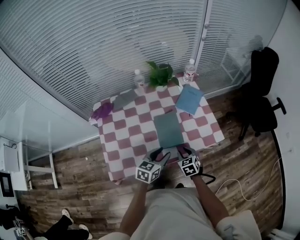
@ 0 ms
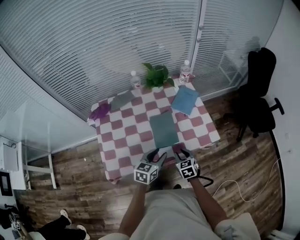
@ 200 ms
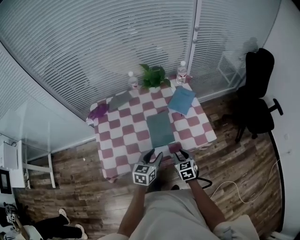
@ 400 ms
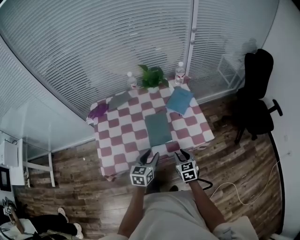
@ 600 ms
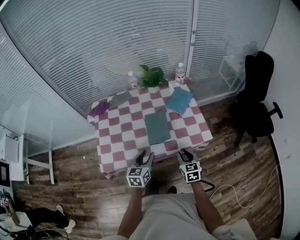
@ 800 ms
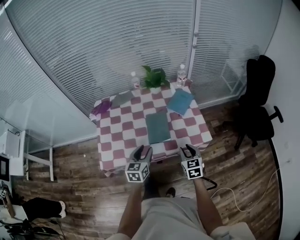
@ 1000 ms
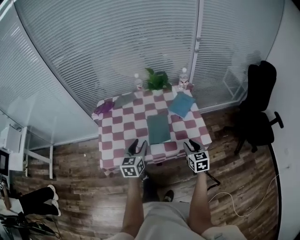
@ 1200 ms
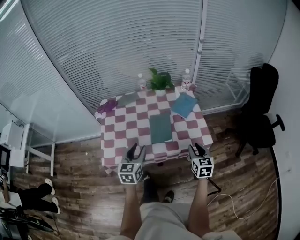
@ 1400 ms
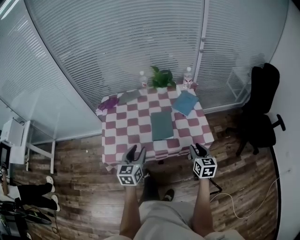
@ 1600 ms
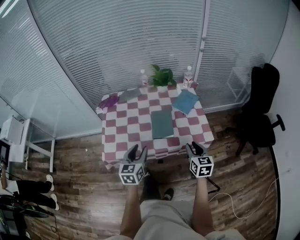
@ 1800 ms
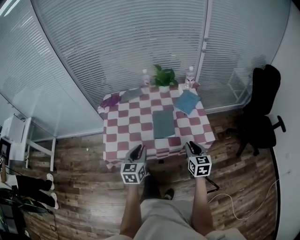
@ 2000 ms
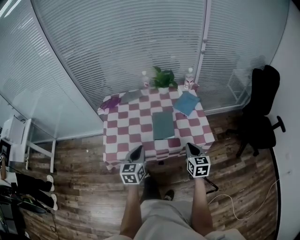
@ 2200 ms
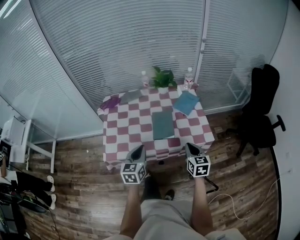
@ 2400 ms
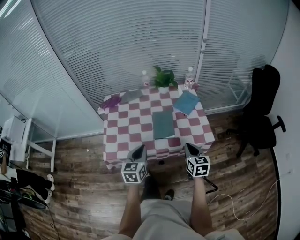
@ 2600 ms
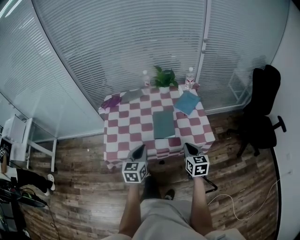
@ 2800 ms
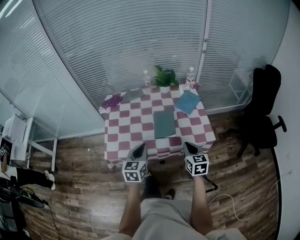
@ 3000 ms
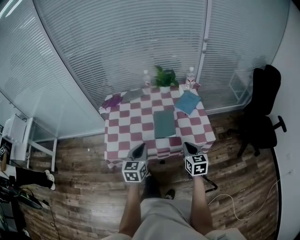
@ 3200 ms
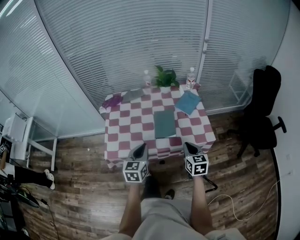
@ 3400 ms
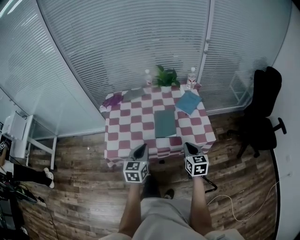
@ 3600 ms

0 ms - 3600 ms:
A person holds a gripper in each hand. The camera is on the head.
0 ms - 1800 ms: The left gripper shifts roughly 15 cm backward, upward and to the left, and rotates some 40 degrees. Meanwhile the right gripper travels upward, to the right and backward by about 20 cm, and rotates about 30 degrees.
1800 ms - 3600 ms: The right gripper closes its fingers. Meanwhile the left gripper closes up.

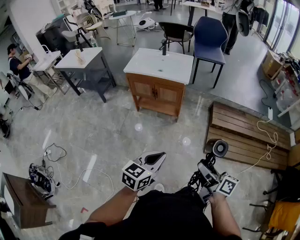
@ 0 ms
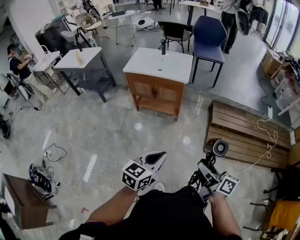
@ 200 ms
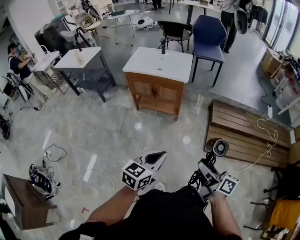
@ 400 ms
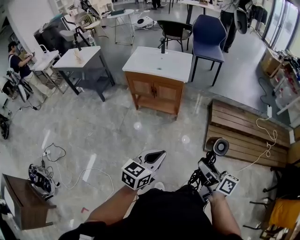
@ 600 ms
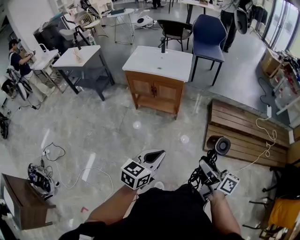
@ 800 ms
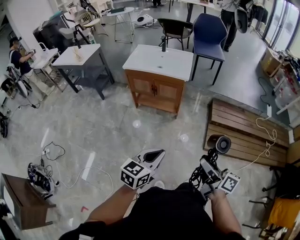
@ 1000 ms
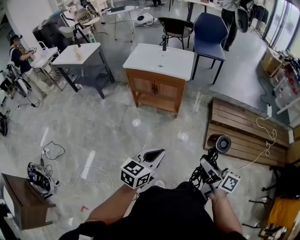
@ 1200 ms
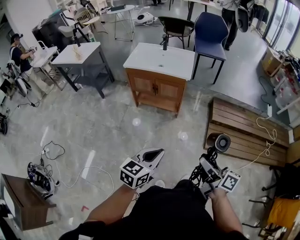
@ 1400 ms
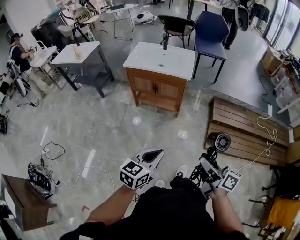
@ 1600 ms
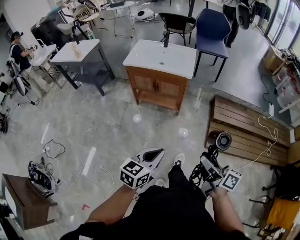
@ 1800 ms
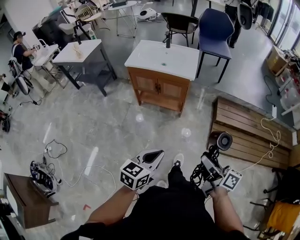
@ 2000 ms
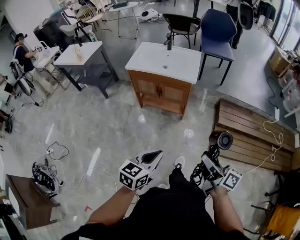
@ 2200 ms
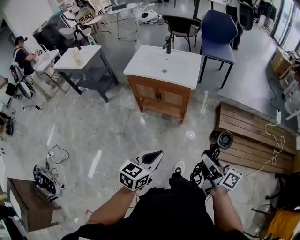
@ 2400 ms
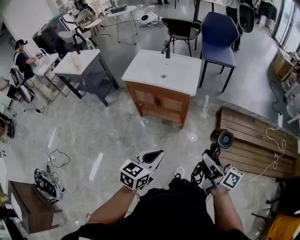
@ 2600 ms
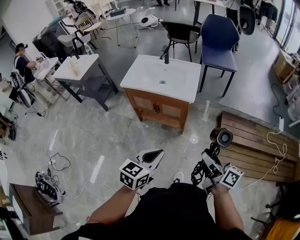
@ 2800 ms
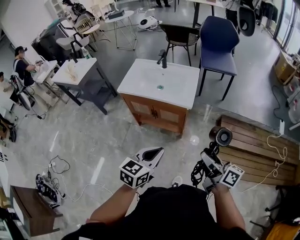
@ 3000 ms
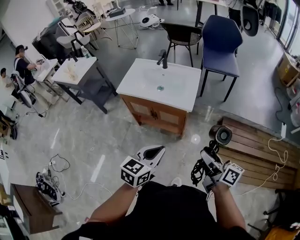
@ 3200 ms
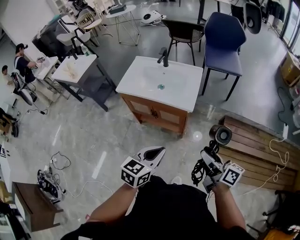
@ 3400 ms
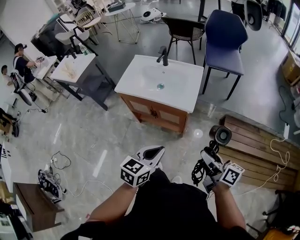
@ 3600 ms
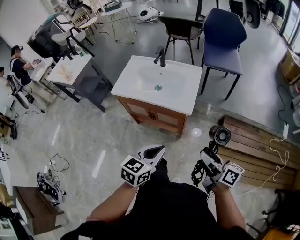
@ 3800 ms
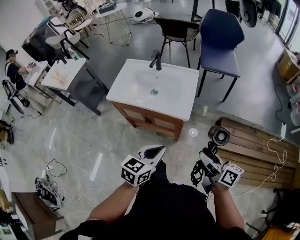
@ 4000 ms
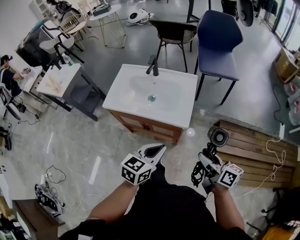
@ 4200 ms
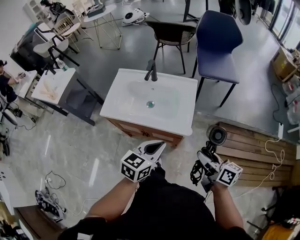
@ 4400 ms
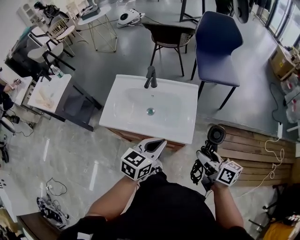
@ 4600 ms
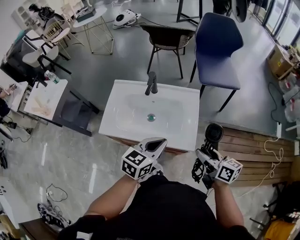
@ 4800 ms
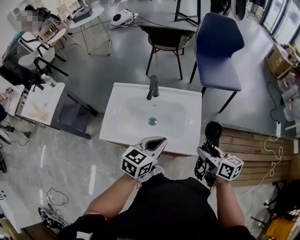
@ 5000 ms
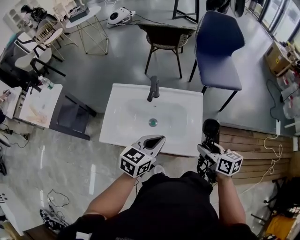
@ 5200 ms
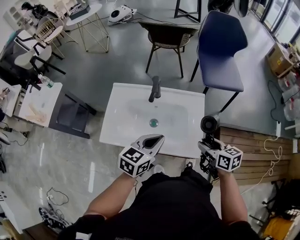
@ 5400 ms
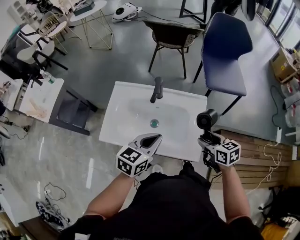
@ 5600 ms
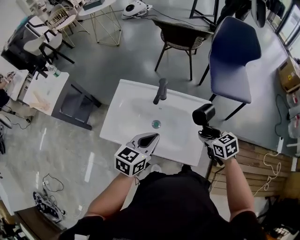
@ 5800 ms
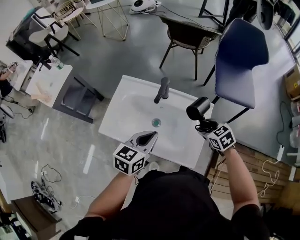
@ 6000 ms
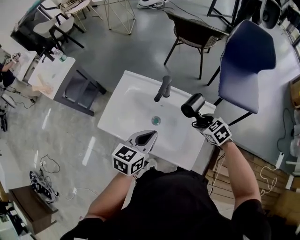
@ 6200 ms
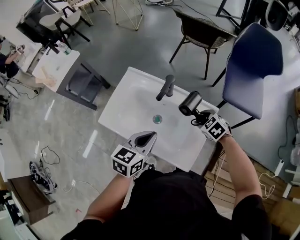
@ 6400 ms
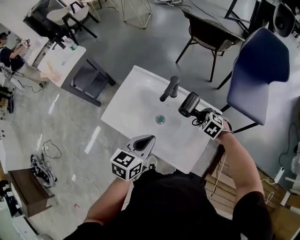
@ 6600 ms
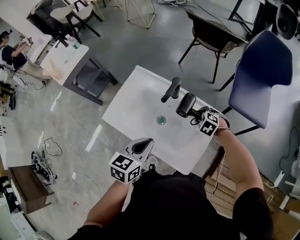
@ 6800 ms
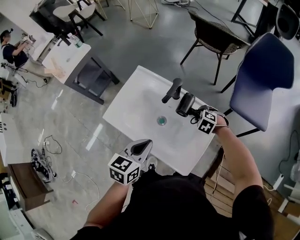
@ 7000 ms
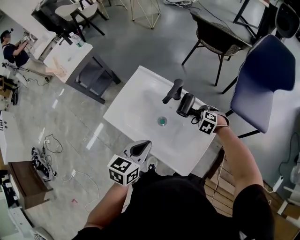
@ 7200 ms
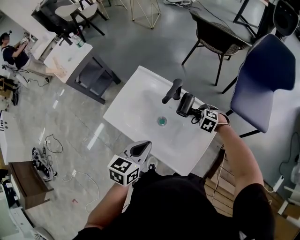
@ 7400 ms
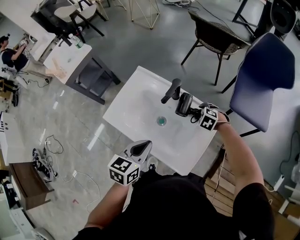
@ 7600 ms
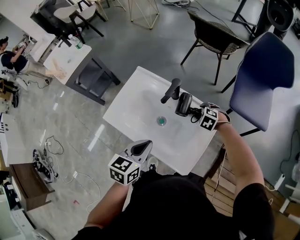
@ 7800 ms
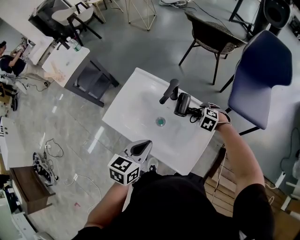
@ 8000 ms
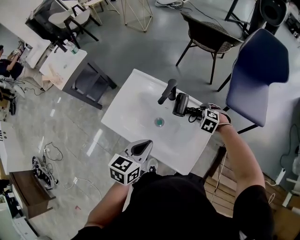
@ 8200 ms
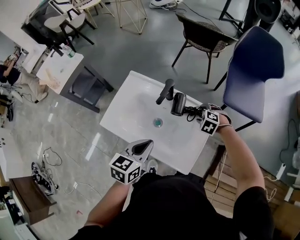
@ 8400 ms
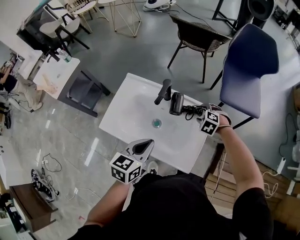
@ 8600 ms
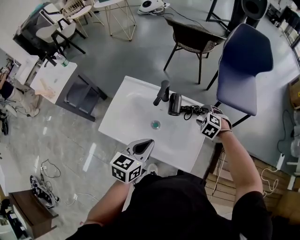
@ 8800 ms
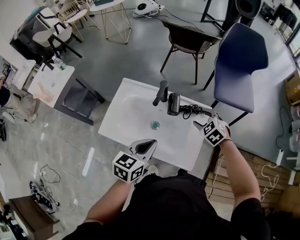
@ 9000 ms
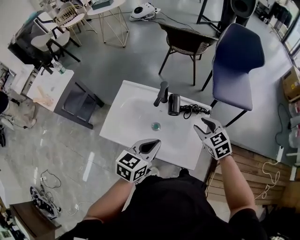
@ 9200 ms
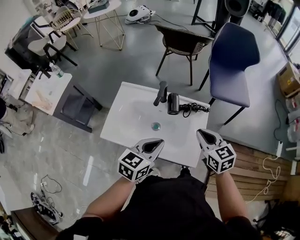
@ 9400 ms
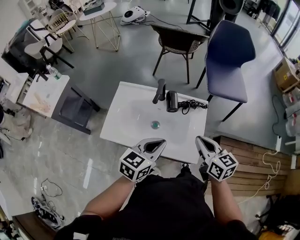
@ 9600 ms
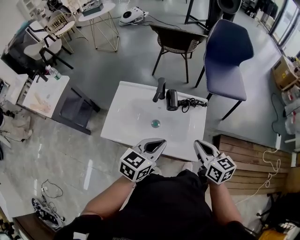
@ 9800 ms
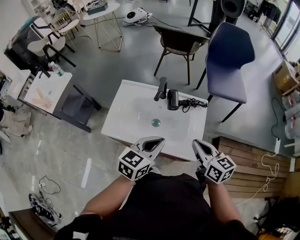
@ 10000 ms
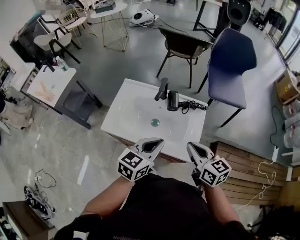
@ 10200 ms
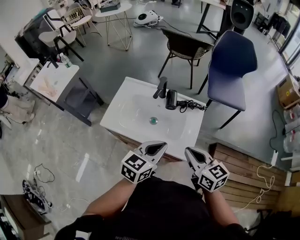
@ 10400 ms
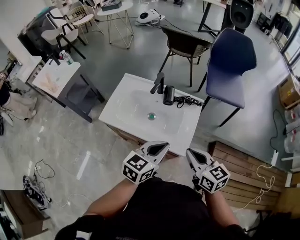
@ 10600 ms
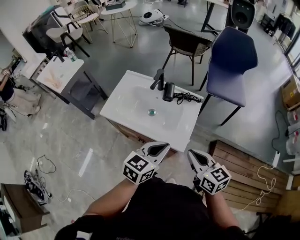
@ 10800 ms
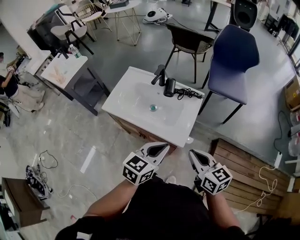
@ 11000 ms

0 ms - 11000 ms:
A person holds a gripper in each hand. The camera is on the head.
0 ms - 1600 ms: The grippers move only a little.
1600 ms - 3200 ms: The grippers both shift forward by about 30 cm.
3200 ms - 4800 ms: Both grippers travel together forward, about 30 cm.
4800 ms - 6200 ms: The left gripper heads forward and to the left, covering roughly 15 cm, and rotates approximately 20 degrees. The right gripper moves forward and downward, some 30 cm, and points its fingers some 40 degrees further downward.
6200 ms - 7800 ms: The right gripper shifts roughly 15 cm downward and forward, and swivels approximately 40 degrees.
7800 ms - 9400 ms: The right gripper heads upward and backward, covering some 30 cm, angles its fingers upward, by about 50 degrees, and closes. Meanwhile the left gripper changes its angle by some 30 degrees.
9400 ms - 11000 ms: The right gripper moves backward, about 20 cm. Meanwhile the left gripper travels backward and to the right by roughly 20 cm.

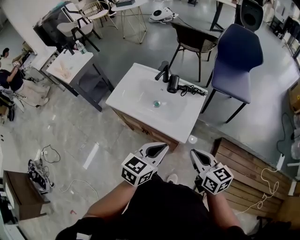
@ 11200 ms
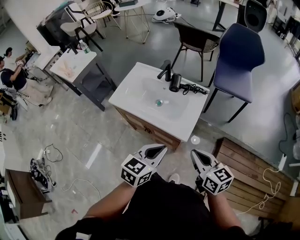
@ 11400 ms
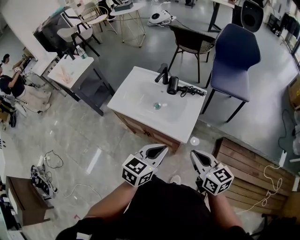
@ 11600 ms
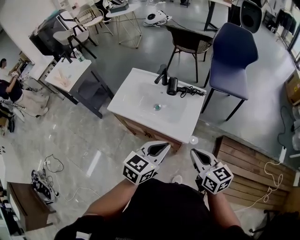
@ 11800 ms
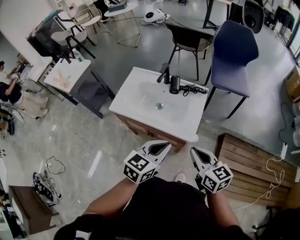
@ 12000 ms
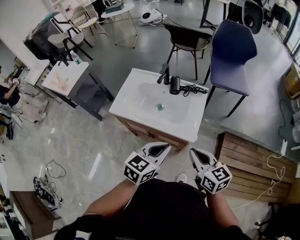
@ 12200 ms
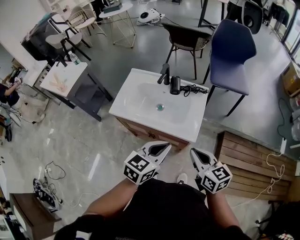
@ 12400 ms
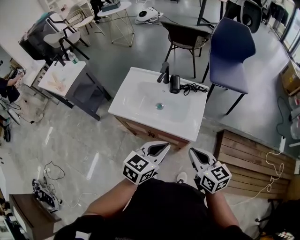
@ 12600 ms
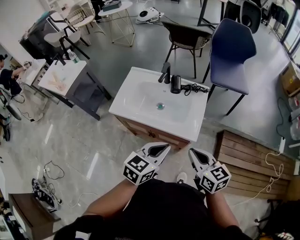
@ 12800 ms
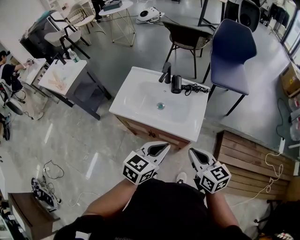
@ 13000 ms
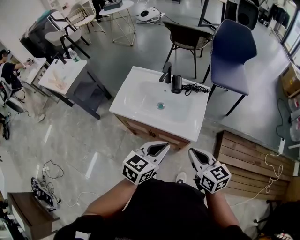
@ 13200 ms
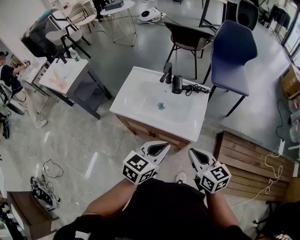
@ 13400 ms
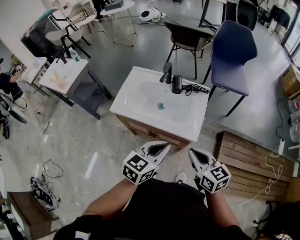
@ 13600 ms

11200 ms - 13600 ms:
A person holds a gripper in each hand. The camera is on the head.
11200 ms - 12400 ms: Both grippers move to the left, about 5 cm.
12400 ms - 13600 ms: The grippers move only a little.

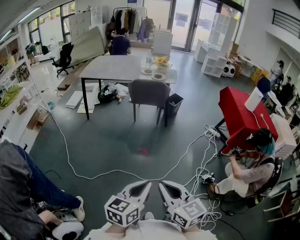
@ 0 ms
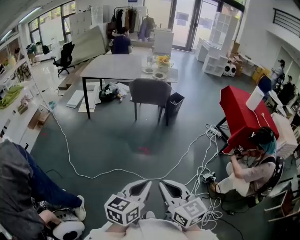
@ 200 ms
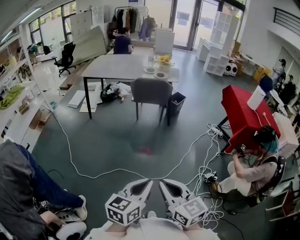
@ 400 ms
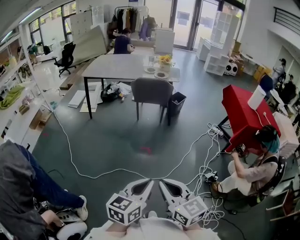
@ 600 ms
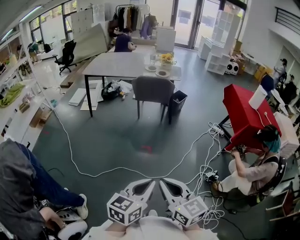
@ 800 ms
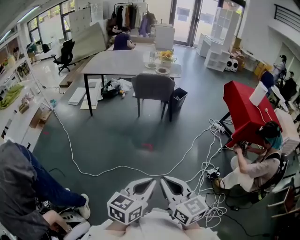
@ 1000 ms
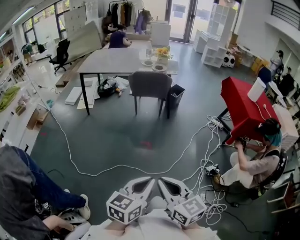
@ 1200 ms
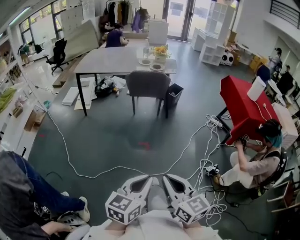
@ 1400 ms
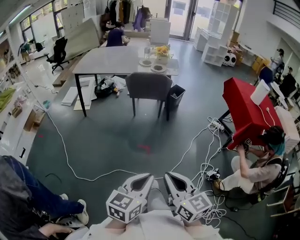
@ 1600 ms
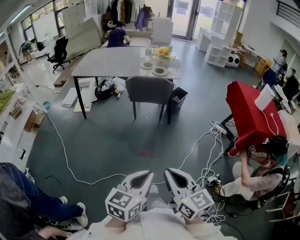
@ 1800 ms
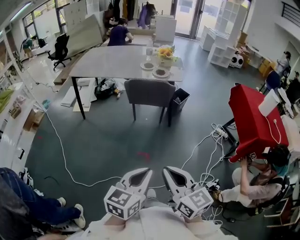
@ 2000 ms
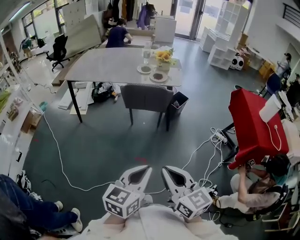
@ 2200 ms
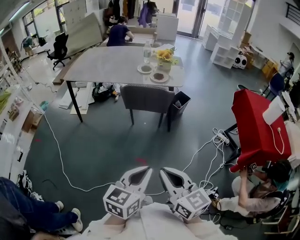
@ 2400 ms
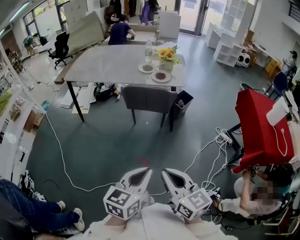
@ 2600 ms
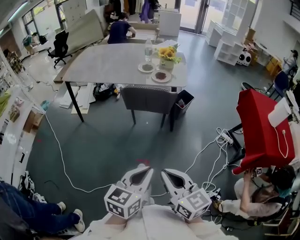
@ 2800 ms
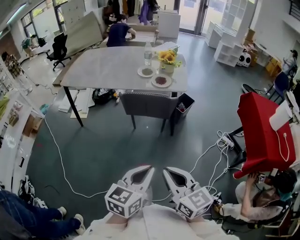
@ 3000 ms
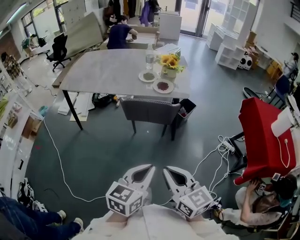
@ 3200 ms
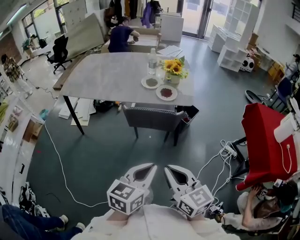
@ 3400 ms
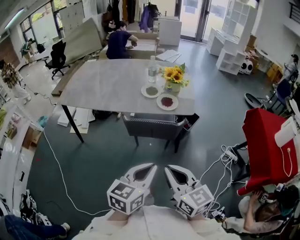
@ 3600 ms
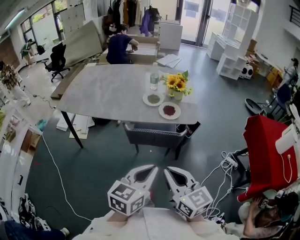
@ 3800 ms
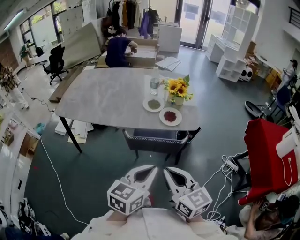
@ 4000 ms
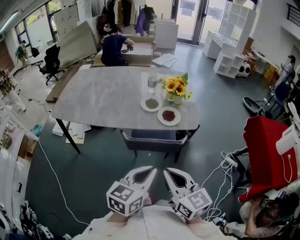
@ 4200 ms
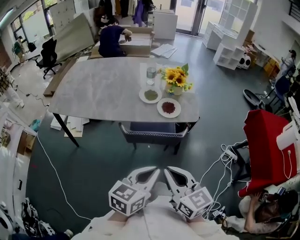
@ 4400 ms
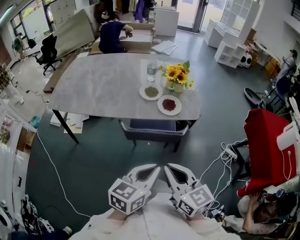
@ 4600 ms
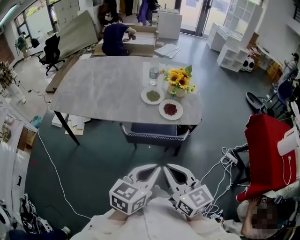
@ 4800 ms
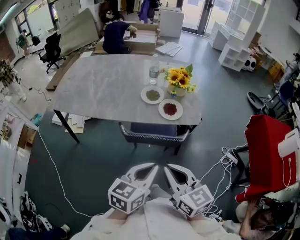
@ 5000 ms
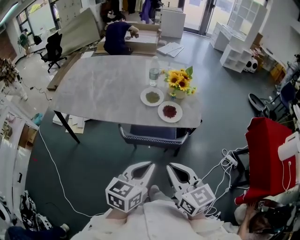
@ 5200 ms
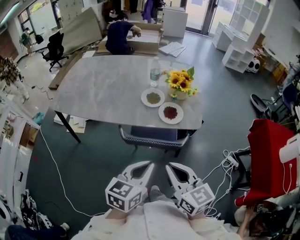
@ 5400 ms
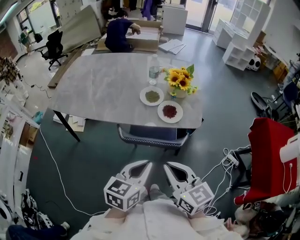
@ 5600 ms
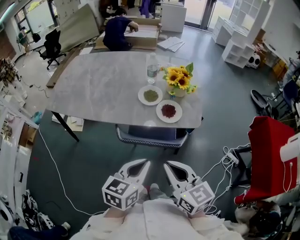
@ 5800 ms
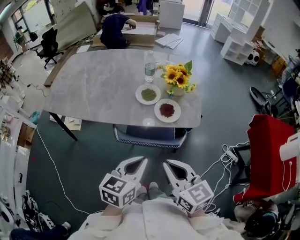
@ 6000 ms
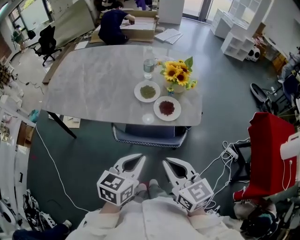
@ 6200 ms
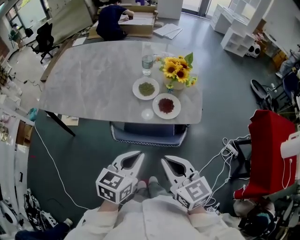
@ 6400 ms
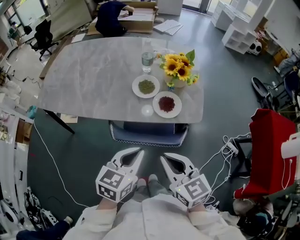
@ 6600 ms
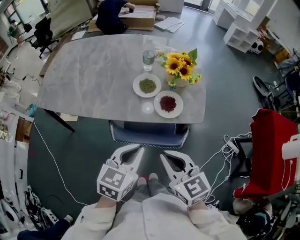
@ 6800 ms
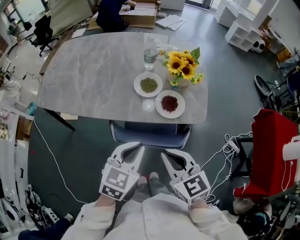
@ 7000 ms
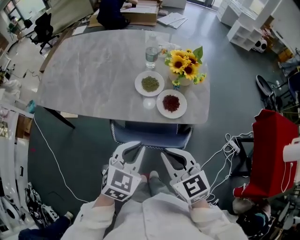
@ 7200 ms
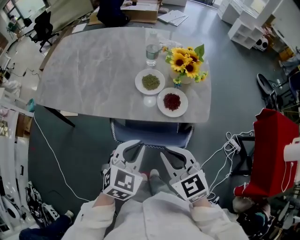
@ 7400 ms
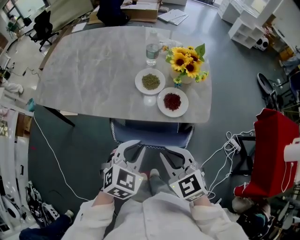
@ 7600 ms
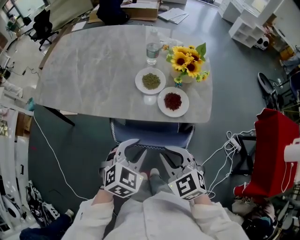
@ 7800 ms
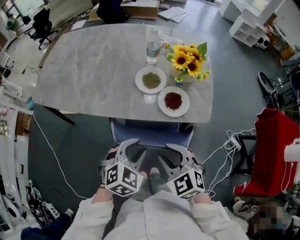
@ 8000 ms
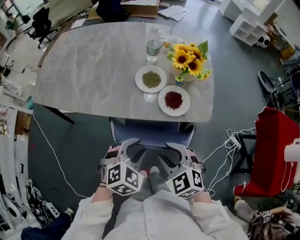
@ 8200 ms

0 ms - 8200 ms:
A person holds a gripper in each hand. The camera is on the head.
0 ms - 1600 ms: The two grippers go roughly 10 cm forward.
1600 ms - 3200 ms: The two grippers travel together, forward, roughly 40 cm.
3200 ms - 5000 ms: The two grippers go approximately 25 cm forward.
5000 ms - 6600 ms: The two grippers go roughly 10 cm forward.
6600 ms - 8200 ms: Both grippers travel together downward, about 10 cm. The left gripper changes its angle by approximately 40 degrees, and opens up. Meanwhile the right gripper changes its angle by approximately 40 degrees, and opens up.
